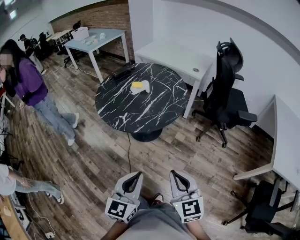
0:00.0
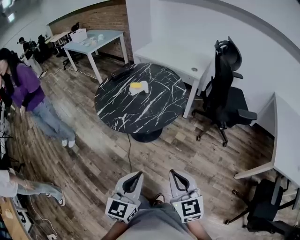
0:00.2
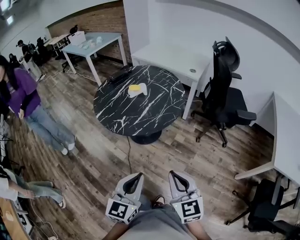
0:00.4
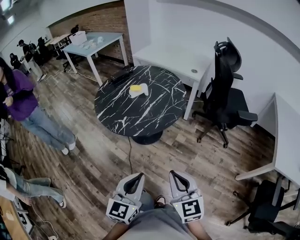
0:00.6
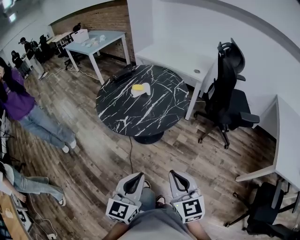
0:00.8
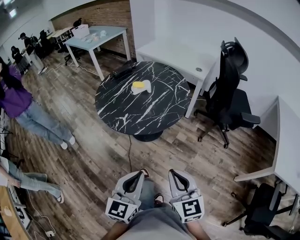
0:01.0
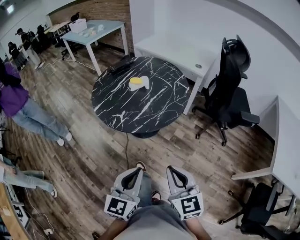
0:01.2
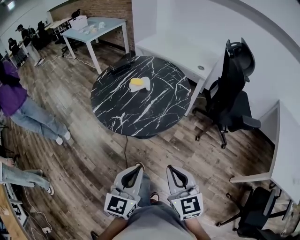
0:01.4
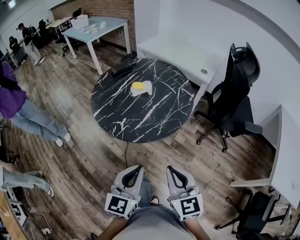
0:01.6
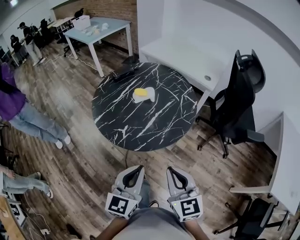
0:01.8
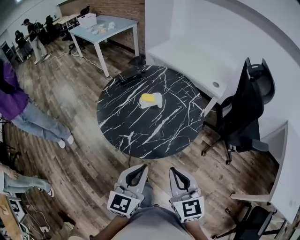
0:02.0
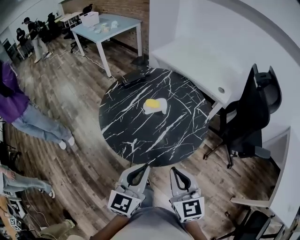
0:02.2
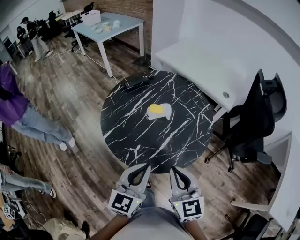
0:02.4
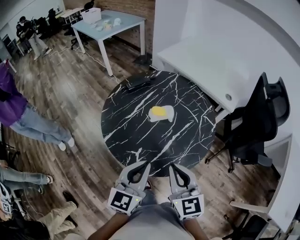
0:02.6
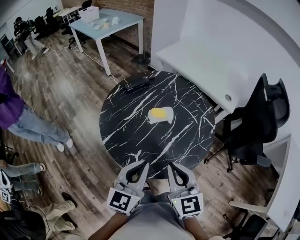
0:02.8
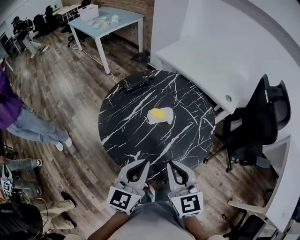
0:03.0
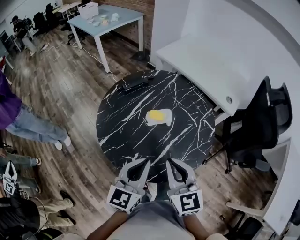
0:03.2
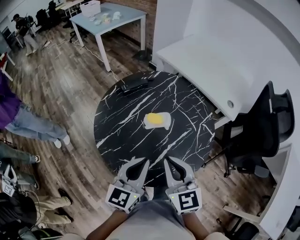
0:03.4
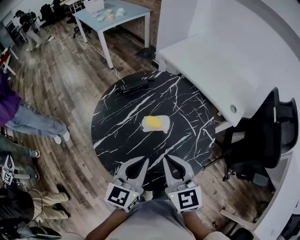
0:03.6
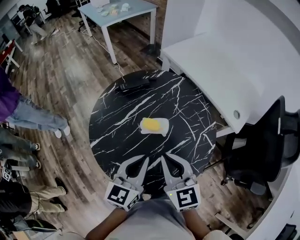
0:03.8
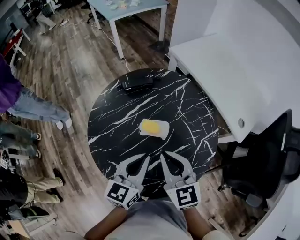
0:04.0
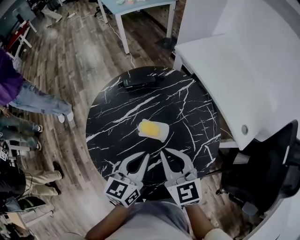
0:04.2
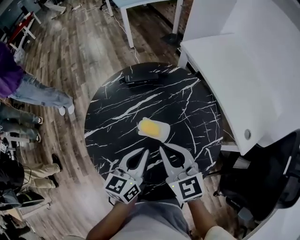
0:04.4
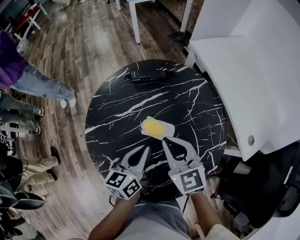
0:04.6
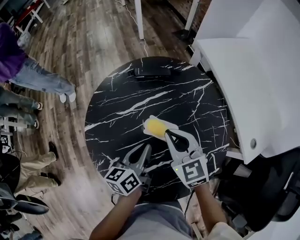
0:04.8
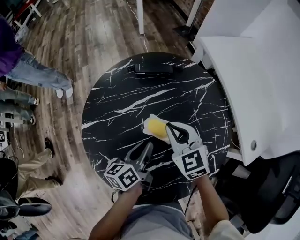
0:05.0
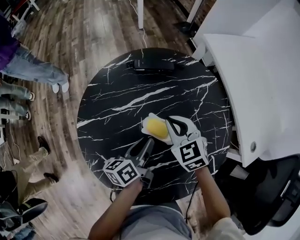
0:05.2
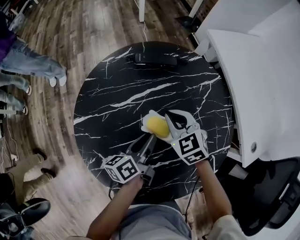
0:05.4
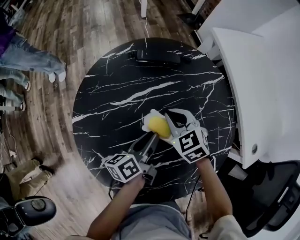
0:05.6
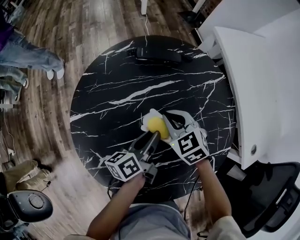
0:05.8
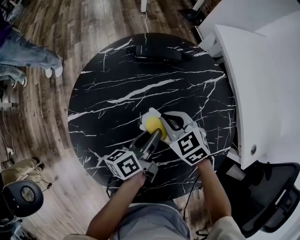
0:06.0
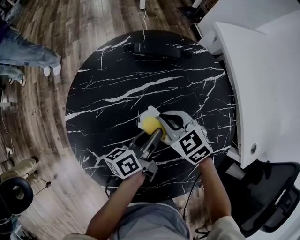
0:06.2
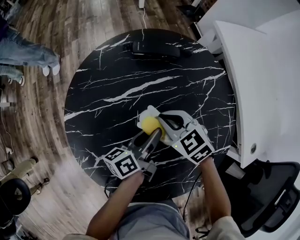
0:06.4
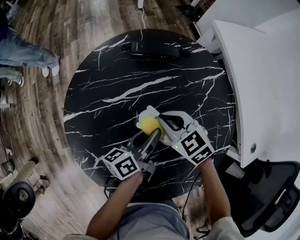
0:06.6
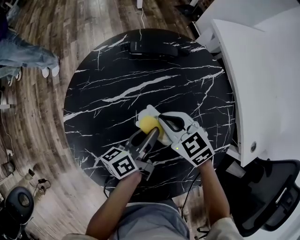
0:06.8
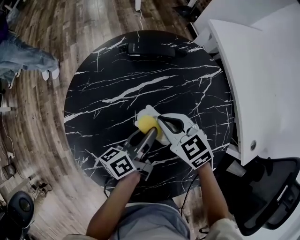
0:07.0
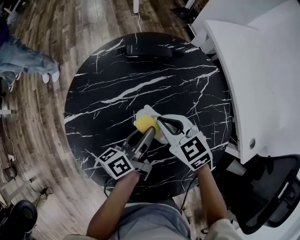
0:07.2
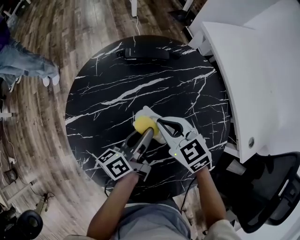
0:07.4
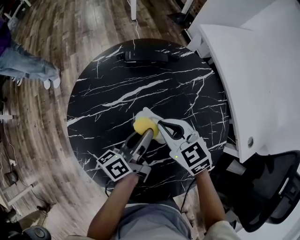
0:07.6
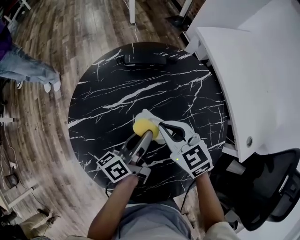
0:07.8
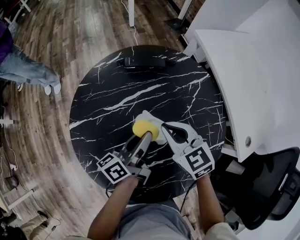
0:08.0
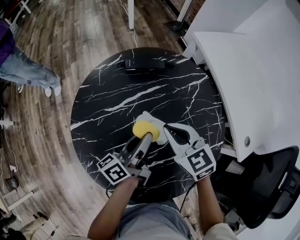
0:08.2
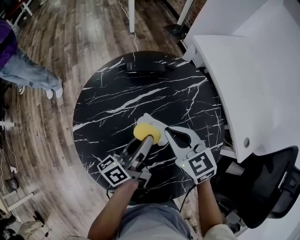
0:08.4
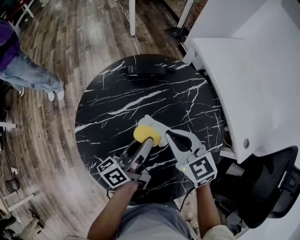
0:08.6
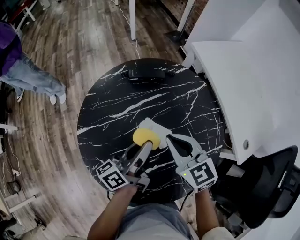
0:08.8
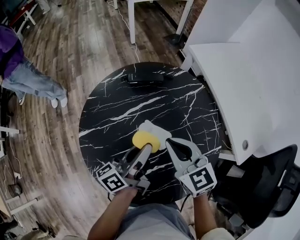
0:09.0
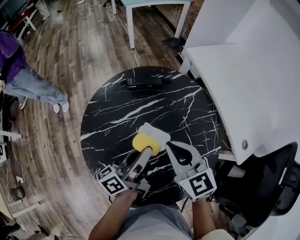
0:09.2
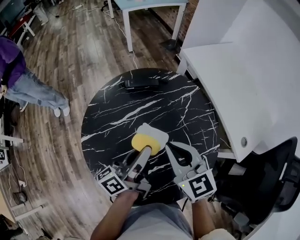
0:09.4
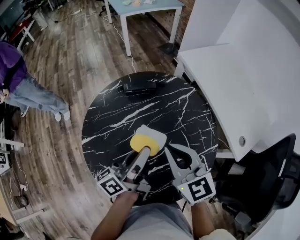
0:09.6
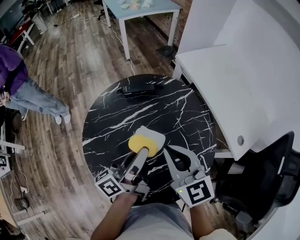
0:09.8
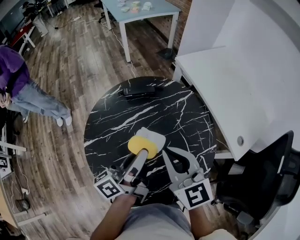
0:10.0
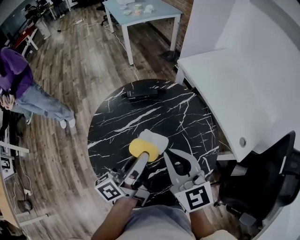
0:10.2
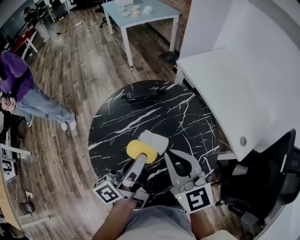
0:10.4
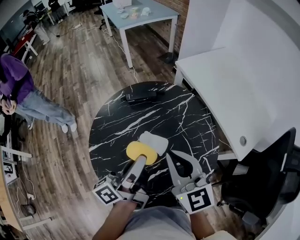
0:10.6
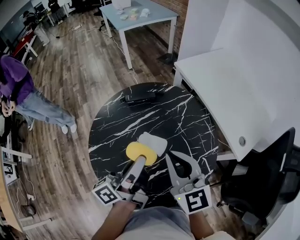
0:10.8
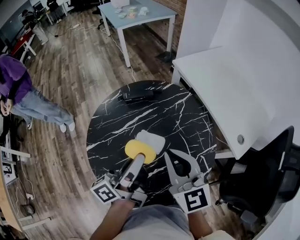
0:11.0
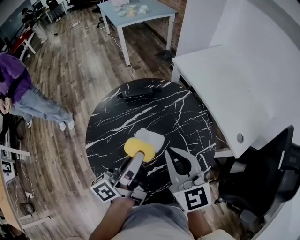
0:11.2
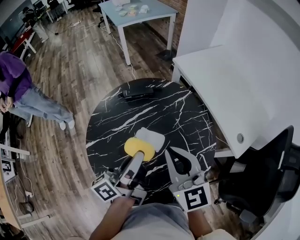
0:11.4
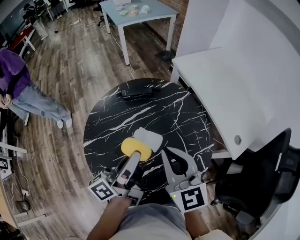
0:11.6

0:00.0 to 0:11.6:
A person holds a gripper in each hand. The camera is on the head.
0:00.0 to 0:01.4: Both grippers travel together forward, approximately 10 cm.
0:01.4 to 0:02.8: The right gripper shifts roughly 30 cm forward and to the left; the left gripper goes about 30 cm forward.
0:02.8 to 0:04.4: The left gripper changes place by approximately 25 cm, and changes its angle by roughly 30 degrees. Meanwhile the right gripper shifts by about 25 cm, and changes its angle by about 30 degrees.
0:04.4 to 0:05.8: Both grippers travel together downward and forward, approximately 20 cm. The left gripper twists roughly 40 degrees counterclockwise, seen from behind, and opens its fingers. The right gripper turns by approximately 40 degrees.
0:05.8 to 0:07.2: The grippers stay close to where they were, moving slightly.
0:07.2 to 0:08.8: Both grippers move upward, some 10 cm.
0:08.8 to 0:10.2: The left gripper heads upward, covering approximately 10 cm, while the right gripper goes roughly 15 cm upward and backward, and turns by some 20 degrees.
0:10.2 to 0:11.6: The grippers stay close to where they were, moving slightly.

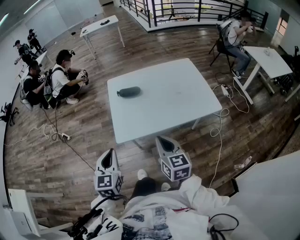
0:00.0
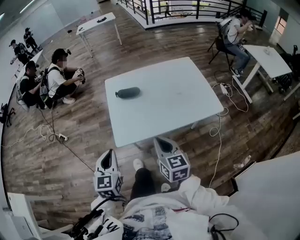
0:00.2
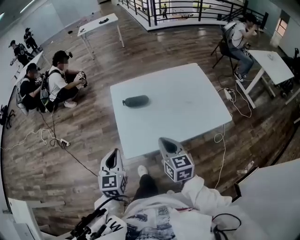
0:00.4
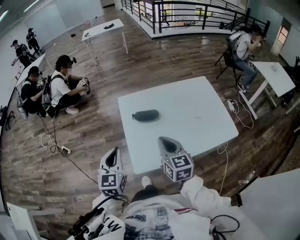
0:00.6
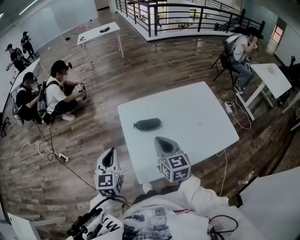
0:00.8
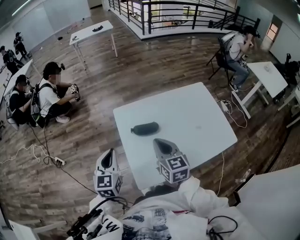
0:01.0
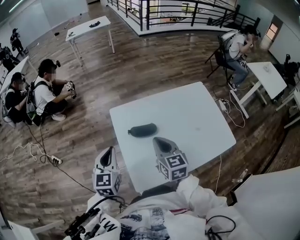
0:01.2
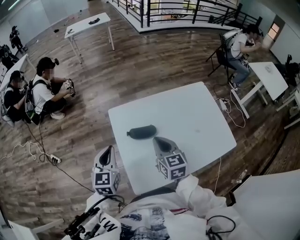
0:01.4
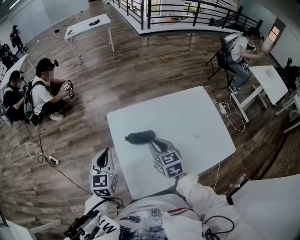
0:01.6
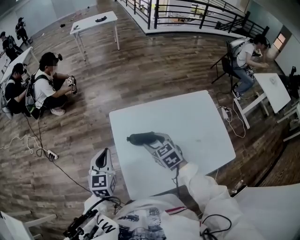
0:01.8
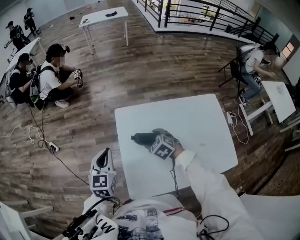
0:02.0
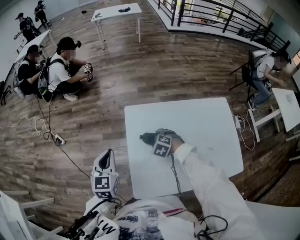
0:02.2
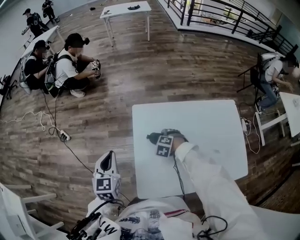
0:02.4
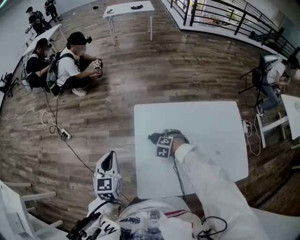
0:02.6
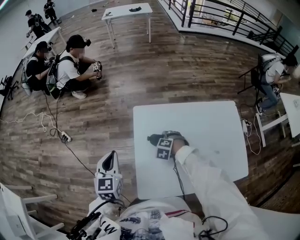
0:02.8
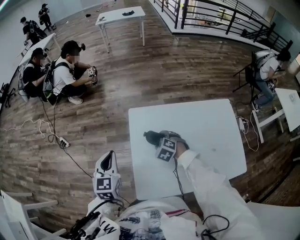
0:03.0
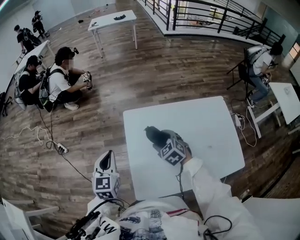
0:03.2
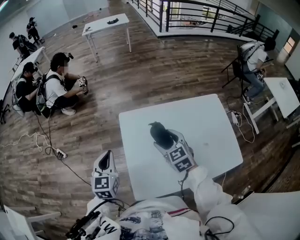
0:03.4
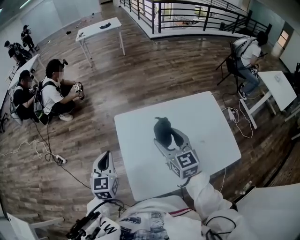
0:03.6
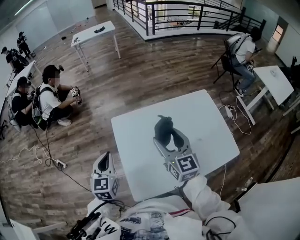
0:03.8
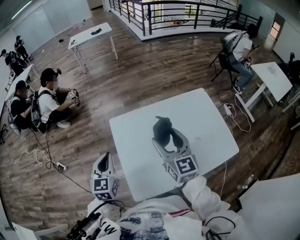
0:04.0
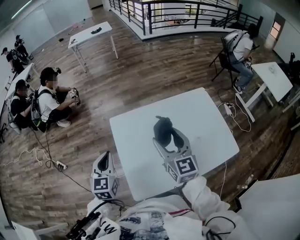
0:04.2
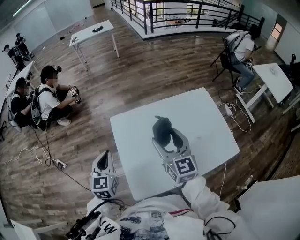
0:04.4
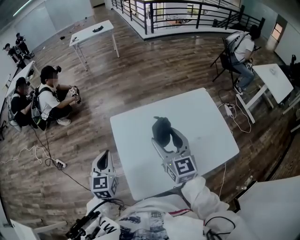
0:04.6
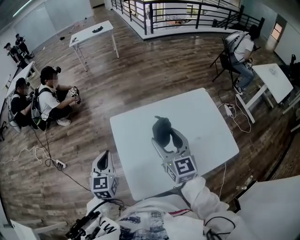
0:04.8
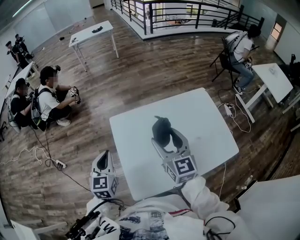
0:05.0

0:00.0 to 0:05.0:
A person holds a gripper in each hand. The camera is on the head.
0:00.0 to 0:01.6: The two grippers go some 35 cm forward.
0:01.6 to 0:03.4: The right gripper goes downward and returns, about 20 cm each way, and opens its fingers.
0:03.4 to 0:05.0: The right gripper shifts roughly 10 cm upward and to the right, and turns by roughly 30 degrees.

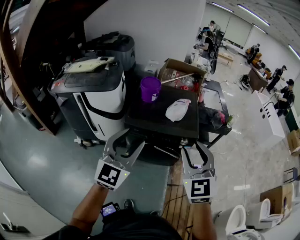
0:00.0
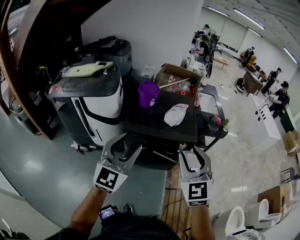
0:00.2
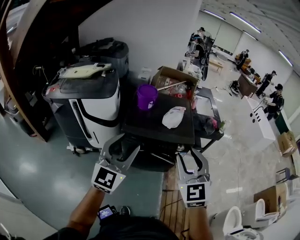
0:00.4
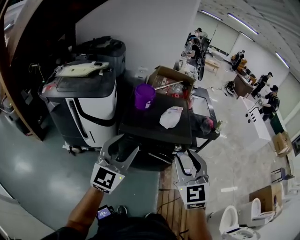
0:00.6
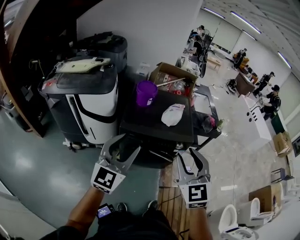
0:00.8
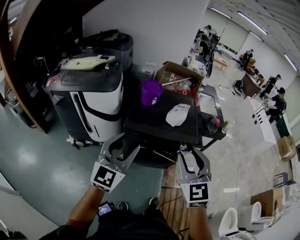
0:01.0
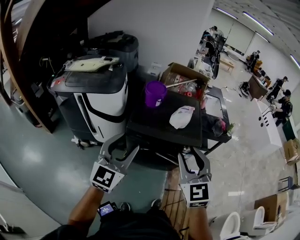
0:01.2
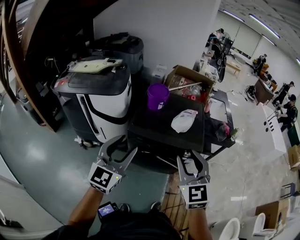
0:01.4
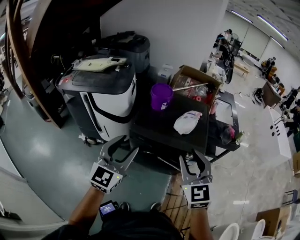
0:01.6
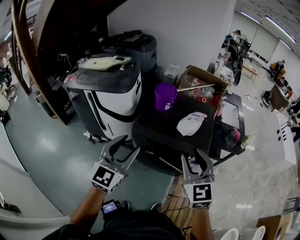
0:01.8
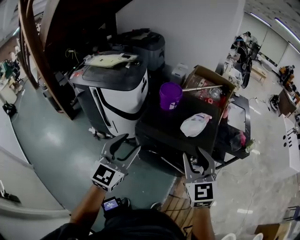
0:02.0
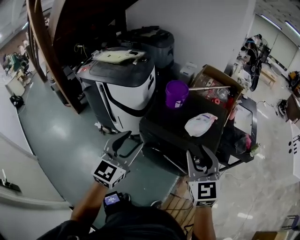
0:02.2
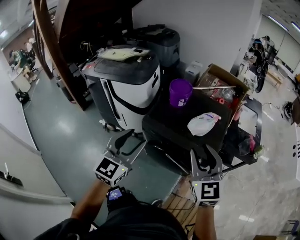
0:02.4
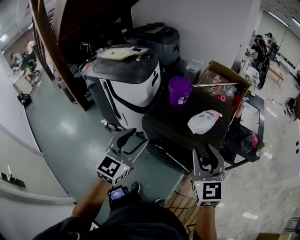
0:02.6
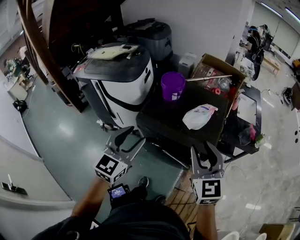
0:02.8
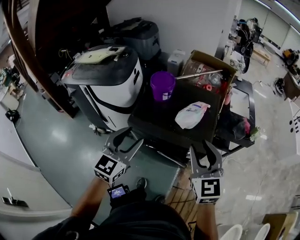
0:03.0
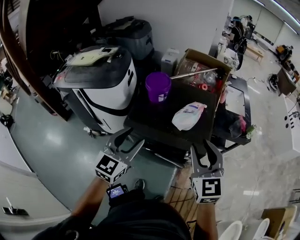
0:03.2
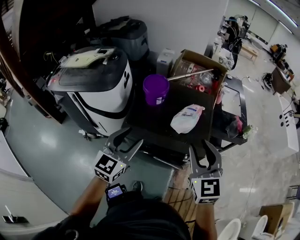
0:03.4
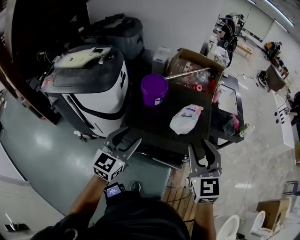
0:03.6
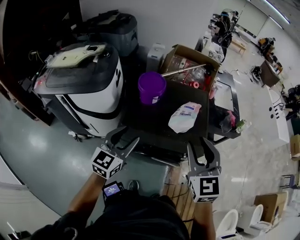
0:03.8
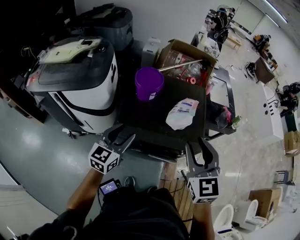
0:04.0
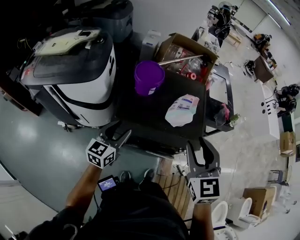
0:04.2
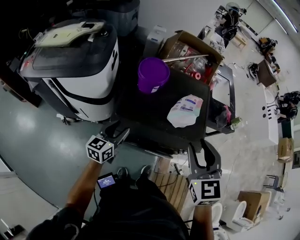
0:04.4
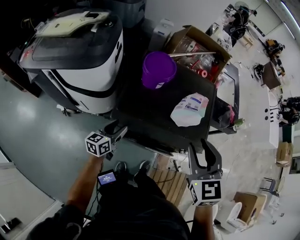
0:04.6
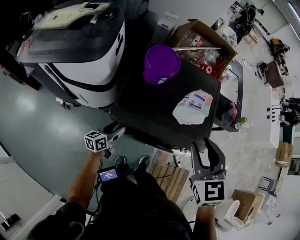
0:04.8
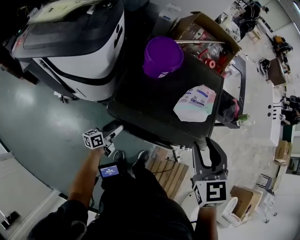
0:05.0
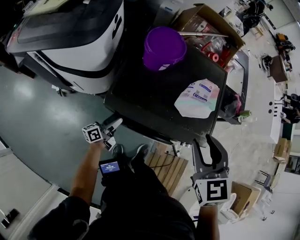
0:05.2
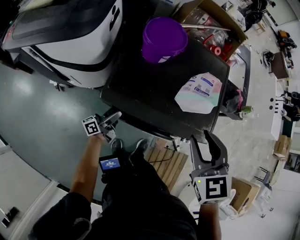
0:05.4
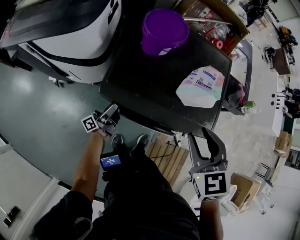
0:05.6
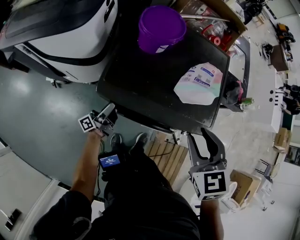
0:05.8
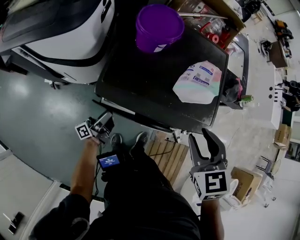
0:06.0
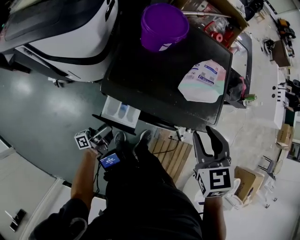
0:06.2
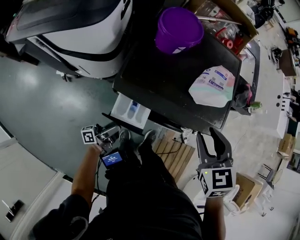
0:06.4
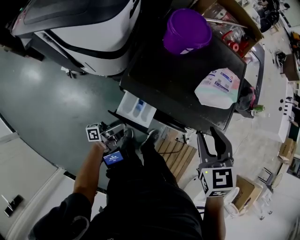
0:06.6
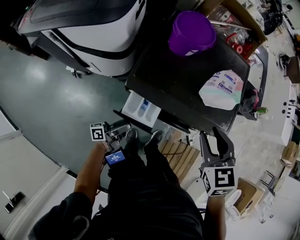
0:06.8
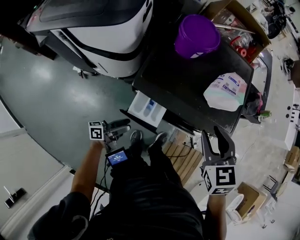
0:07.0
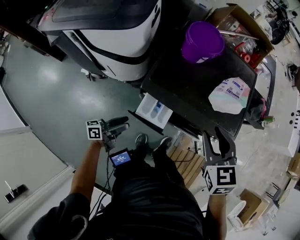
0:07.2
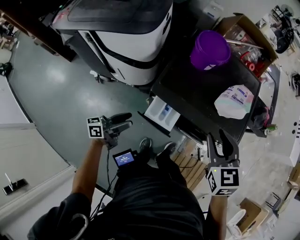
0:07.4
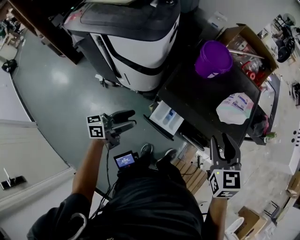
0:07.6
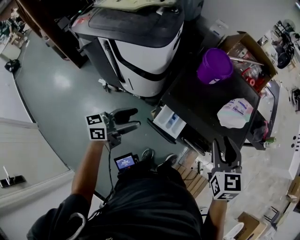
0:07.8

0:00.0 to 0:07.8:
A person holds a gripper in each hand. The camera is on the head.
0:00.0 to 0:01.6: The left gripper travels to the left and forward by some 5 cm, while the right gripper is displaced forward by roughly 10 cm.
0:01.6 to 0:03.2: The left gripper moves forward, to the right and downward, approximately 15 cm; the right gripper moves to the right and forward, some 15 cm.
0:03.2 to 0:04.6: The right gripper travels to the left, forward and downward by roughly 15 cm; the left gripper moves downward, to the left and forward, some 35 cm, and rotates around the line of its fingers by some 40 degrees, counterclockwise from behind.
0:04.6 to 0:06.2: The left gripper goes some 15 cm downward and backward, and rotates around the line of its fingers by roughly 40 degrees, counterclockwise from behind; the right gripper moves downward, roughly 10 cm.
0:06.2 to 0:07.8: The left gripper goes roughly 25 cm upward and to the left, and twists some 40 degrees clockwise, seen from behind. The right gripper moves to the left, upward and backward, roughly 10 cm.
